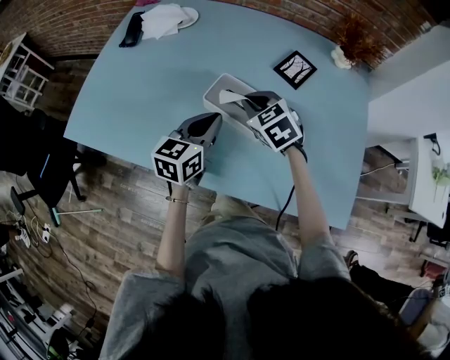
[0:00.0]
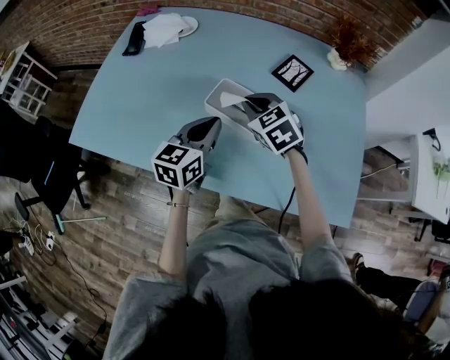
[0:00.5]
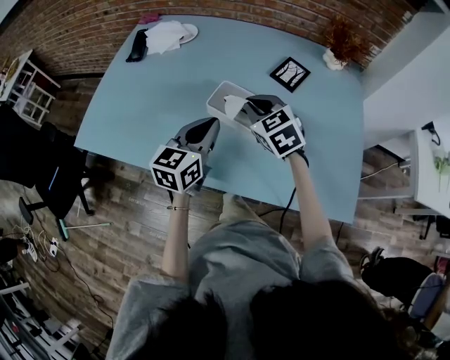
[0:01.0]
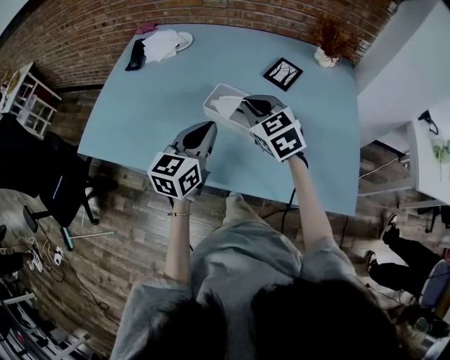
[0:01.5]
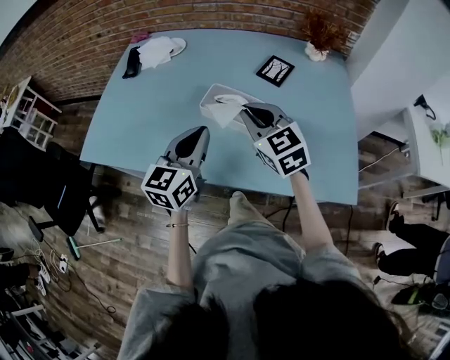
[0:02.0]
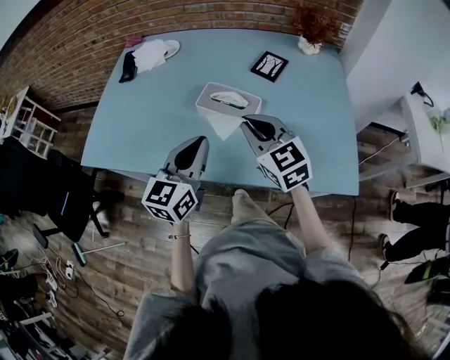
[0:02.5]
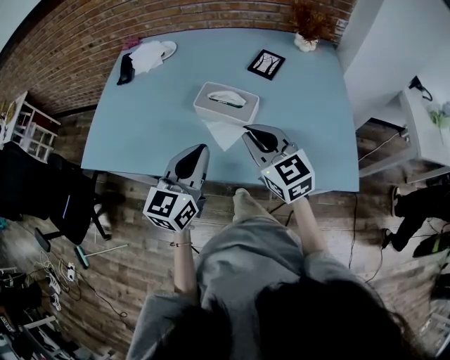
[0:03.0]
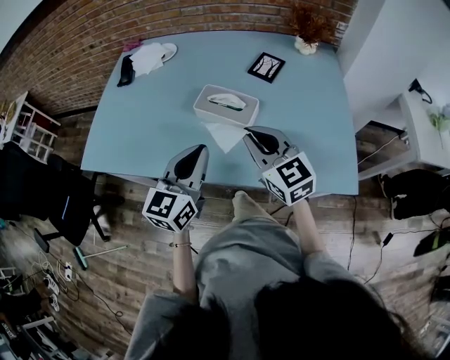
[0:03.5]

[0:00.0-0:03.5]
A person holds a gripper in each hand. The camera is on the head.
0:00.0 to 0:02.0: The right gripper goes roughly 15 cm upward and backward, and swivels some 20 degrees, while the left gripper goes approximately 15 cm backward and upward.
0:02.0 to 0:03.5: The grippers both shift backward by some 5 cm.

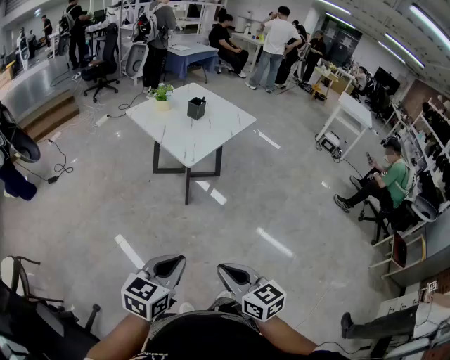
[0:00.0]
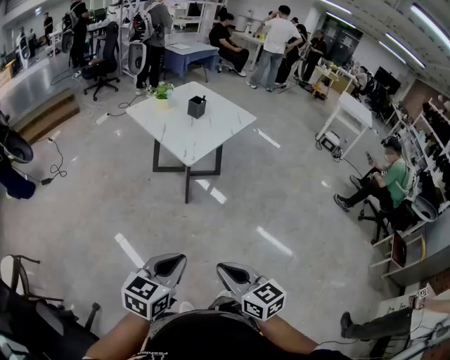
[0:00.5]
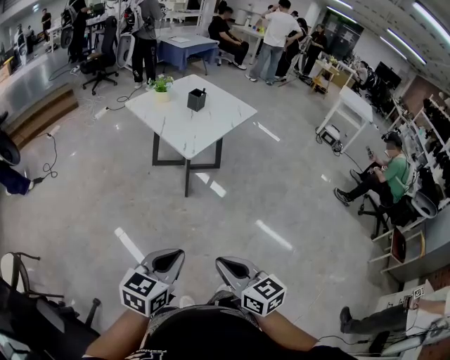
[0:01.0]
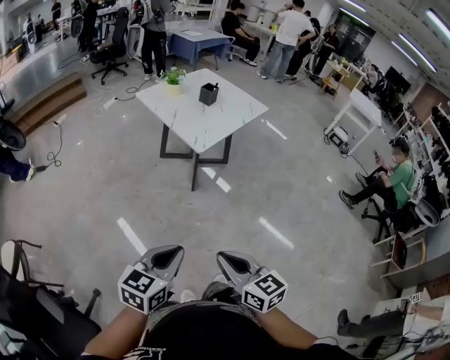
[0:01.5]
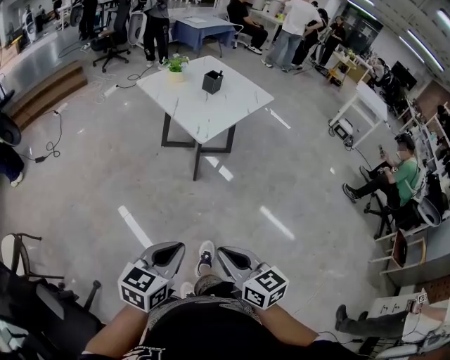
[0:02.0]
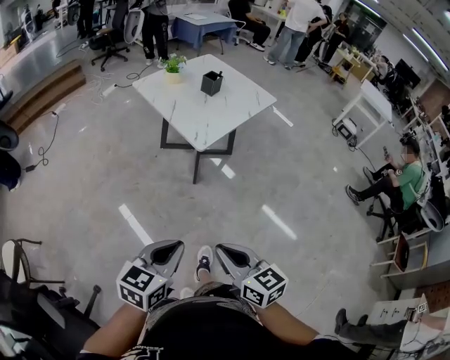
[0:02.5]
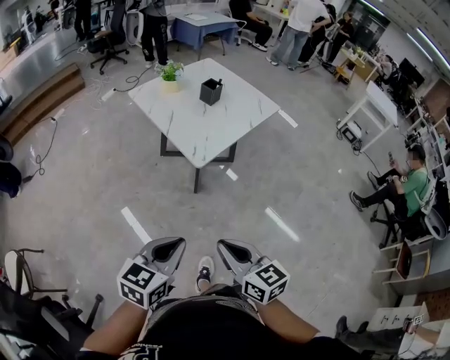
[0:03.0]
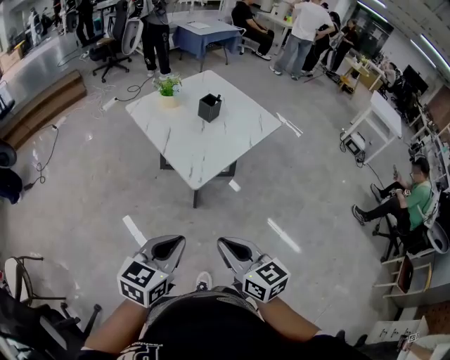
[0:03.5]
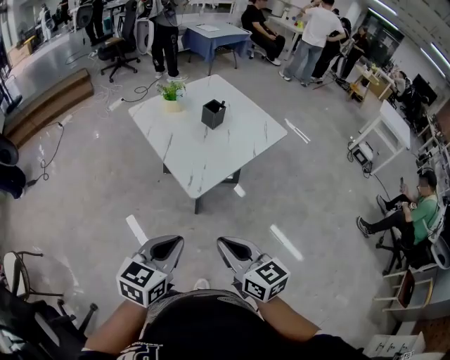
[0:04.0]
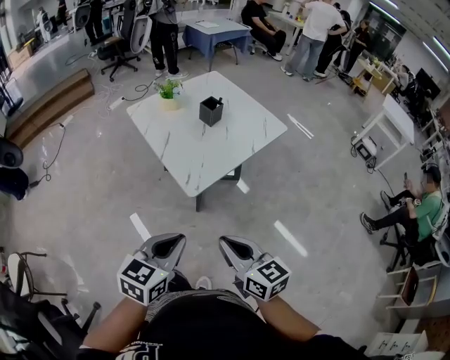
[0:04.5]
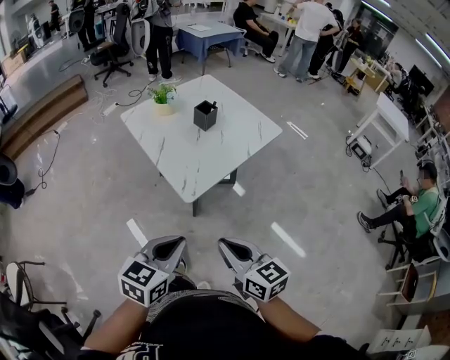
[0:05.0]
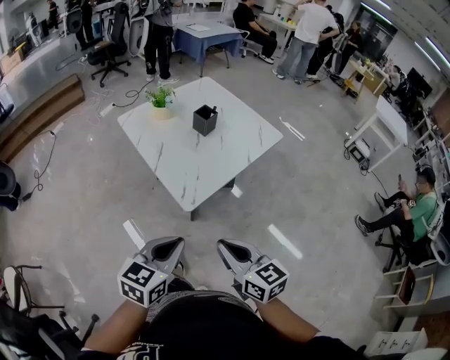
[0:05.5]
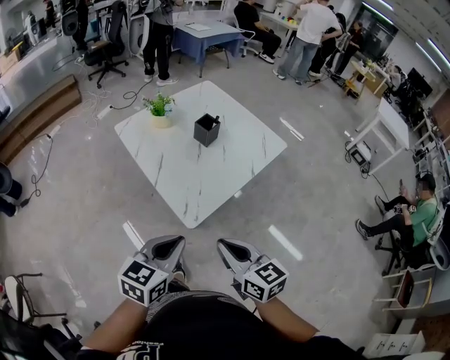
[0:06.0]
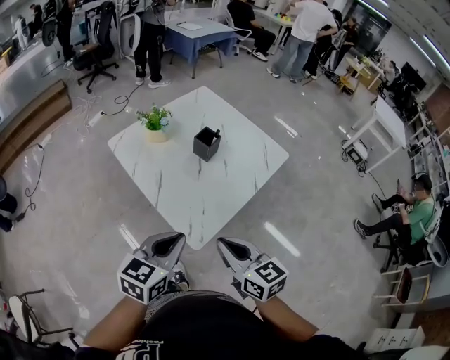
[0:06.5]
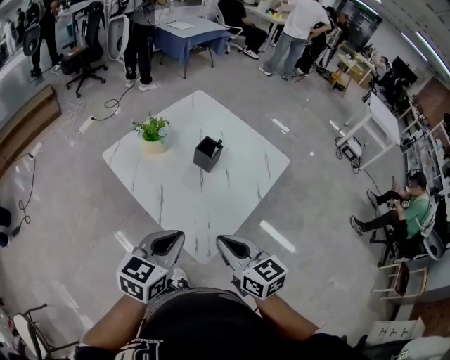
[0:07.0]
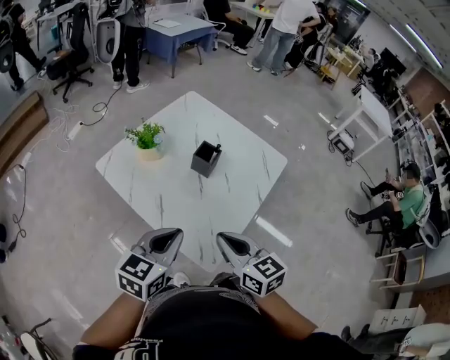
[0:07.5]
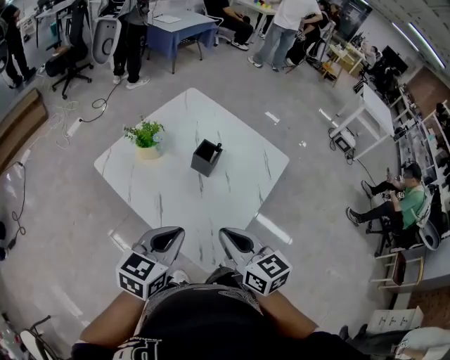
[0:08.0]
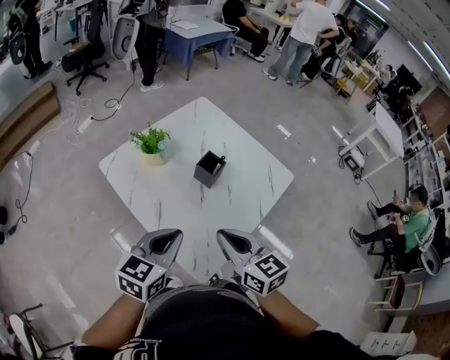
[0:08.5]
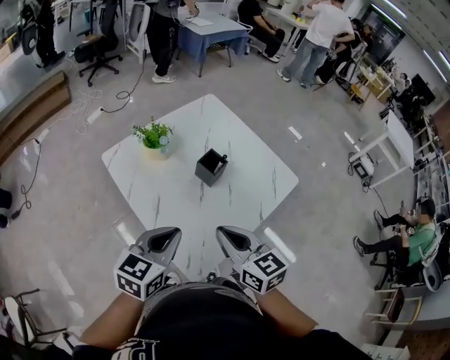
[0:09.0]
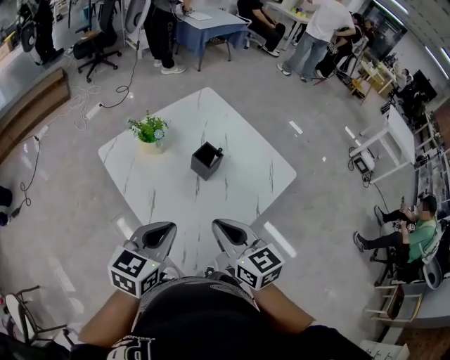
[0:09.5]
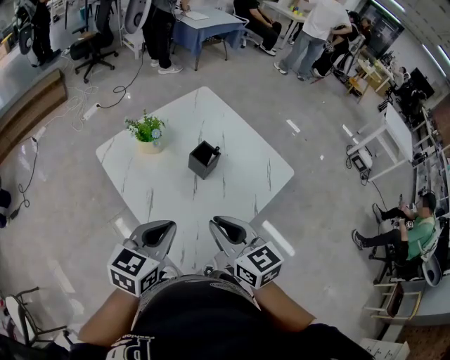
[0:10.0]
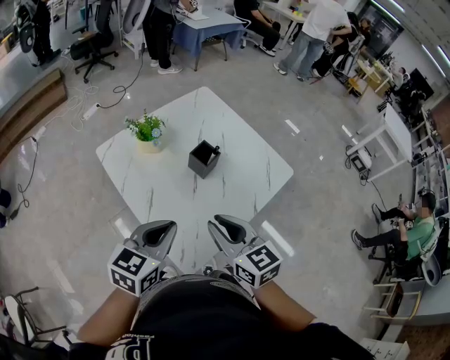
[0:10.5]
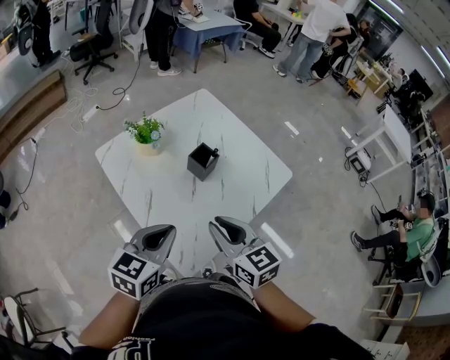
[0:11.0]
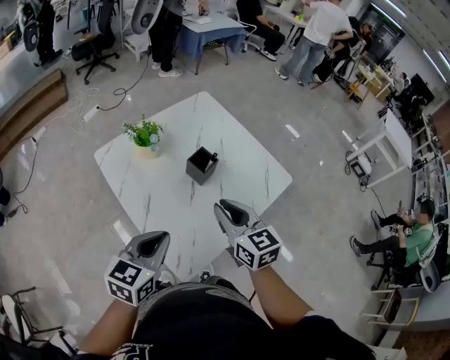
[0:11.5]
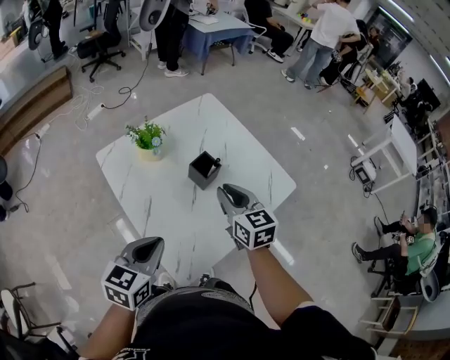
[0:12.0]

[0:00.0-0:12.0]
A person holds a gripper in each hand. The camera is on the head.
0:00.0 to 0:02.0: There are only small adjustments of the grippers.
0:02.0 to 0:04.0: Both grippers move forward, about 30 cm.
0:04.0 to 0:06.0: Both grippers travel together forward, approximately 15 cm.
0:06.0 to 0:08.0: Both grippers travel together forward, about 20 cm.
0:08.0 to 0:10.0: The right gripper ends up about 5 cm from where it was.
0:10.0 to 0:12.0: The right gripper shifts about 15 cm forward.

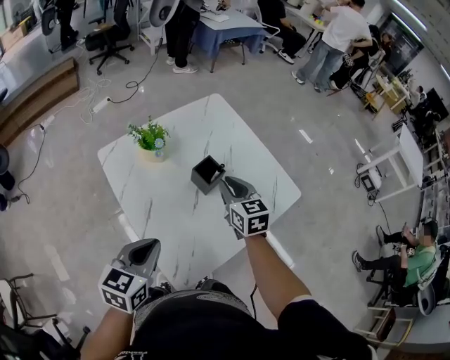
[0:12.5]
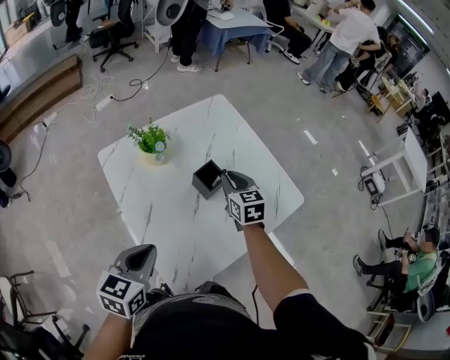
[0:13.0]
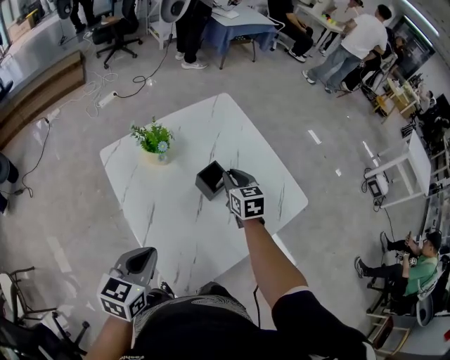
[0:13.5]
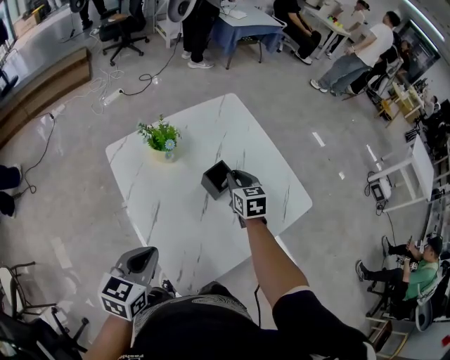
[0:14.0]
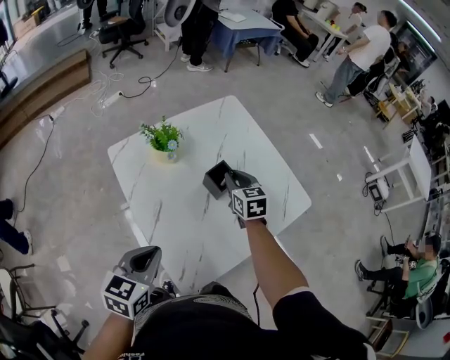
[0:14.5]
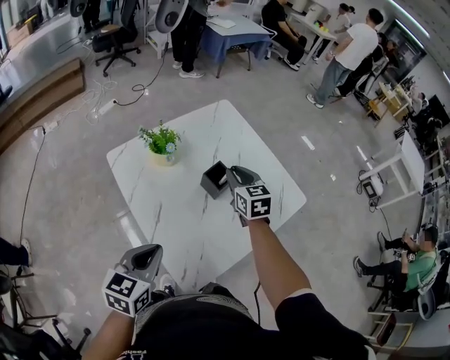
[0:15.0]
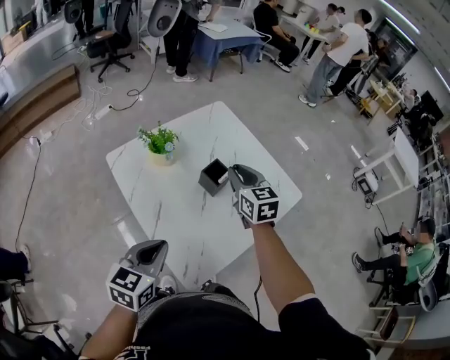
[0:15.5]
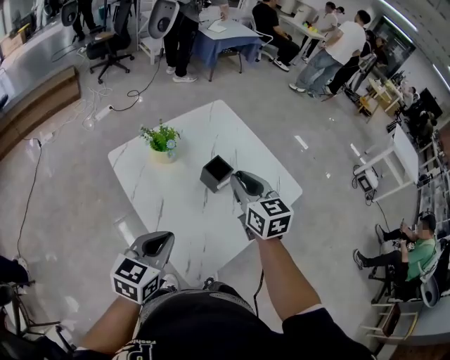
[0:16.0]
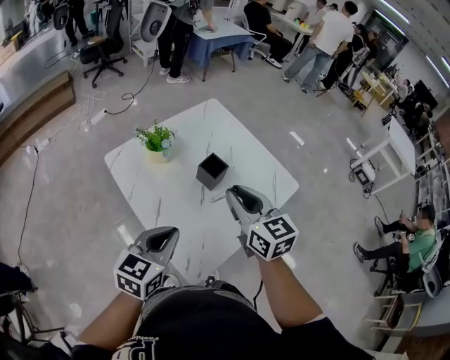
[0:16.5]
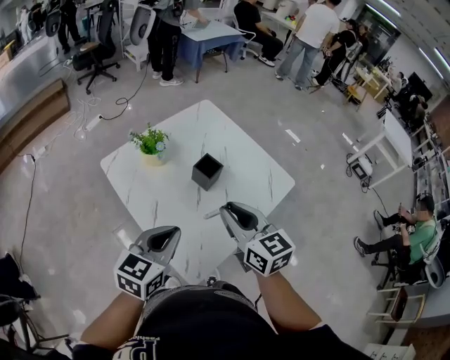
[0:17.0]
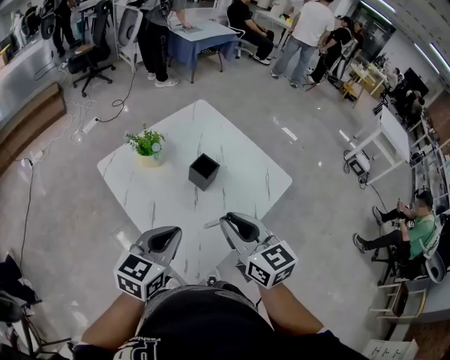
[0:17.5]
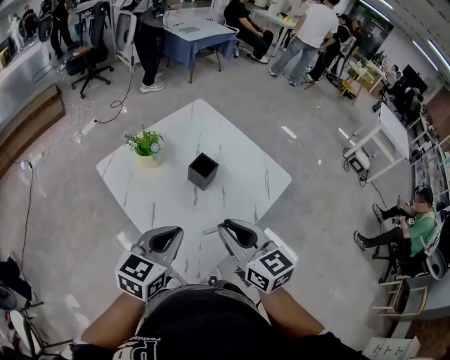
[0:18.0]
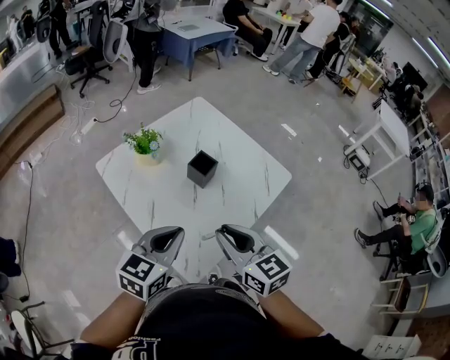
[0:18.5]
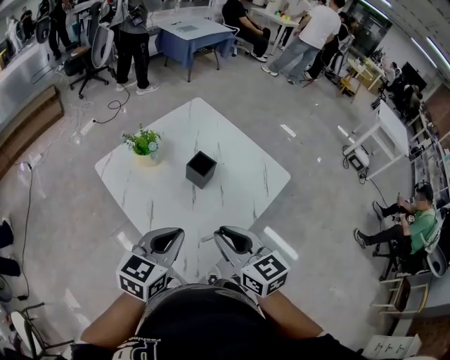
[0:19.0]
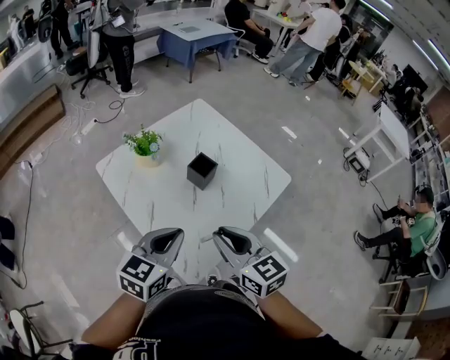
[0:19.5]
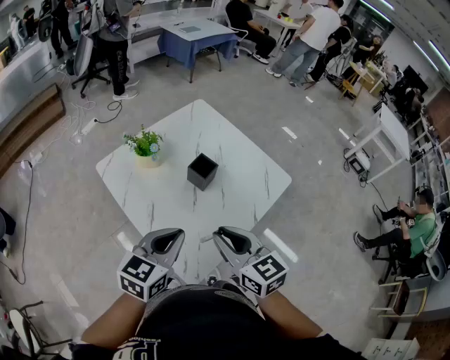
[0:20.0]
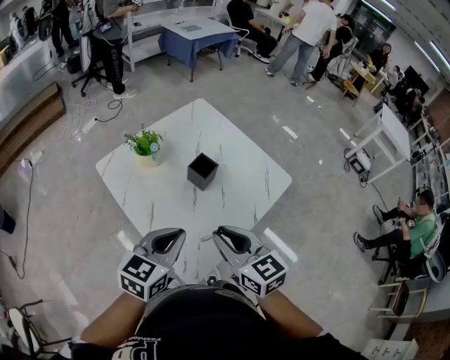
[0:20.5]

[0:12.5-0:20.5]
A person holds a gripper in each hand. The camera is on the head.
0:12.5 to 0:14.5: The right gripper shifts some 10 cm forward and downward.
0:14.5 to 0:16.5: The left gripper changes place by approximately 5 cm, while the right gripper heads upward and backward, covering roughly 25 cm.
0:16.5 to 0:18.5: The right gripper moves backward, approximately 10 cm.
0:18.5 to 0:20.5: The two grippers keep their place.

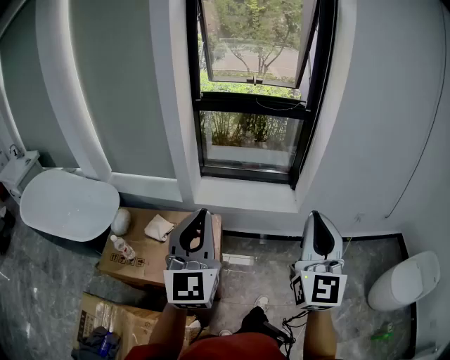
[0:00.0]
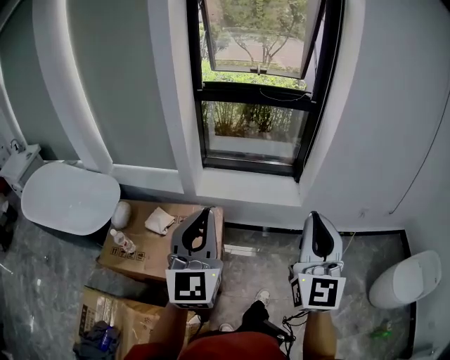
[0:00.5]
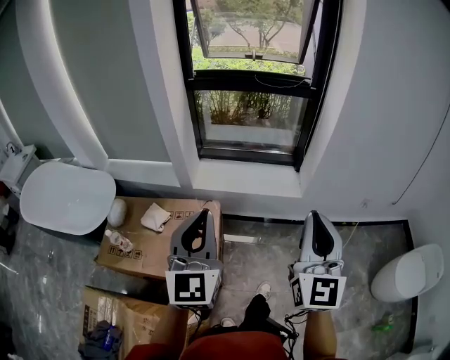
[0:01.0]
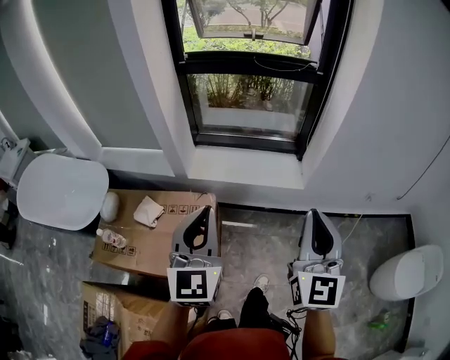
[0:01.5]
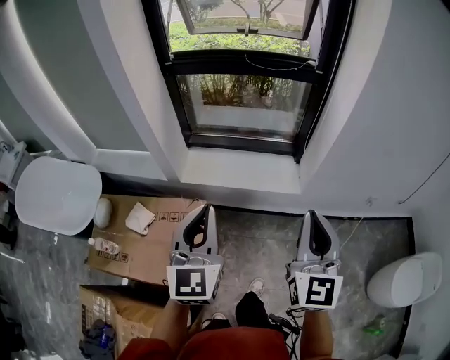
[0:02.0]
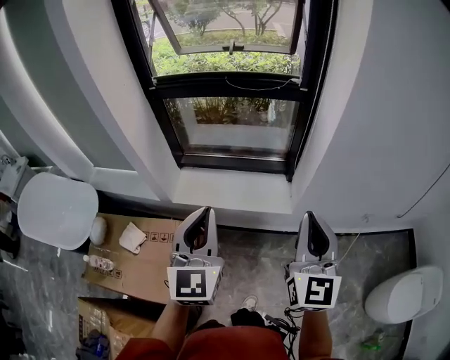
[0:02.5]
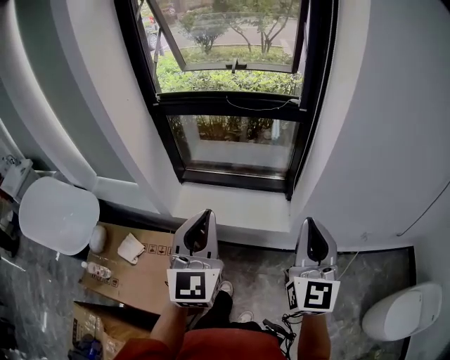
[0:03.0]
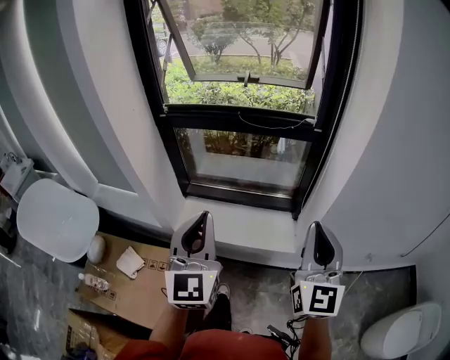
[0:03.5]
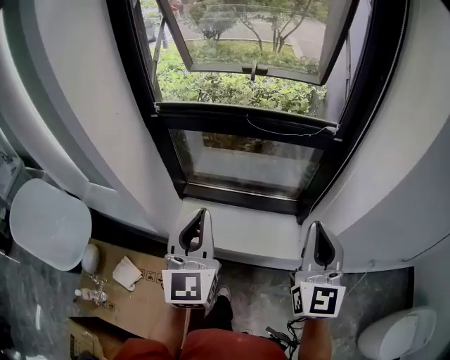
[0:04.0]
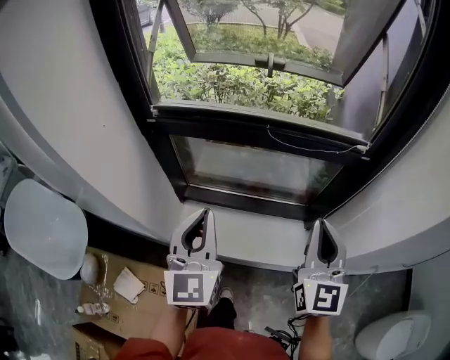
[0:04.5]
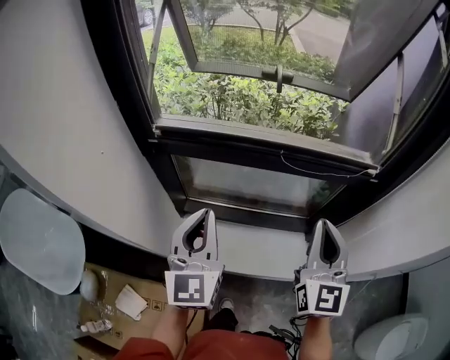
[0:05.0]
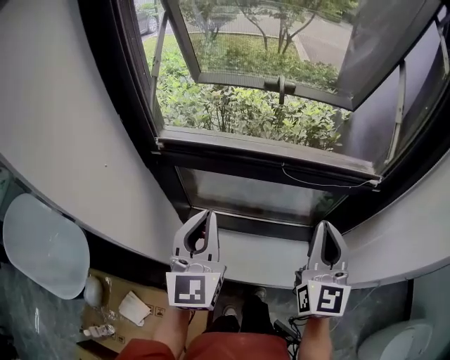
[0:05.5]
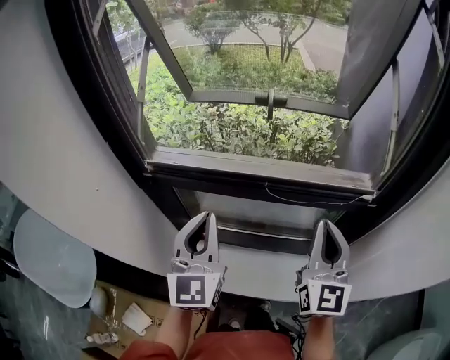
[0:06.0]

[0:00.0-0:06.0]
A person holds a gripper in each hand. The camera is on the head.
0:00.0 to 0:02.0: The right gripper goes some 25 cm forward and downward, while the left gripper travels forward, to the right and downward by about 25 cm.
0:02.0 to 0:04.0: Both grippers move forward, about 30 cm.
0:04.0 to 0:06.0: The grippers both shift forward by approximately 25 cm.
